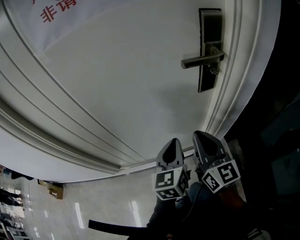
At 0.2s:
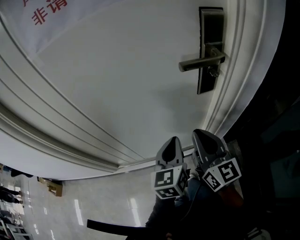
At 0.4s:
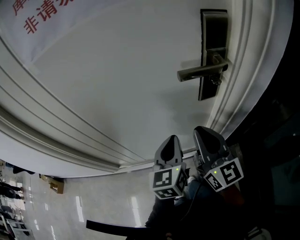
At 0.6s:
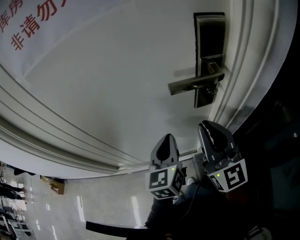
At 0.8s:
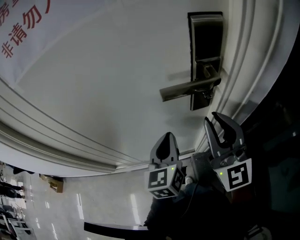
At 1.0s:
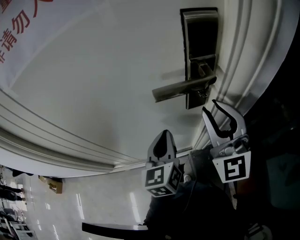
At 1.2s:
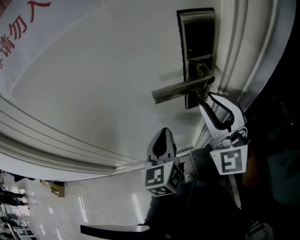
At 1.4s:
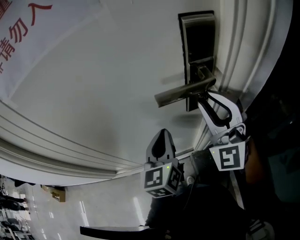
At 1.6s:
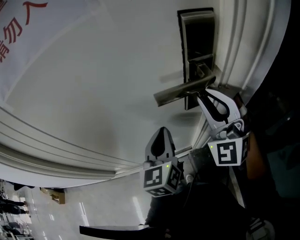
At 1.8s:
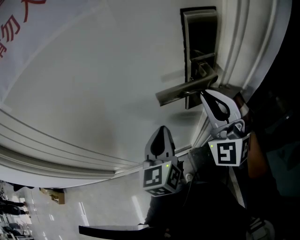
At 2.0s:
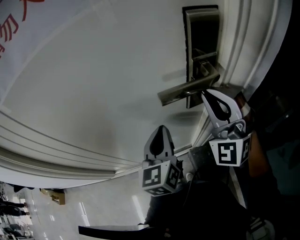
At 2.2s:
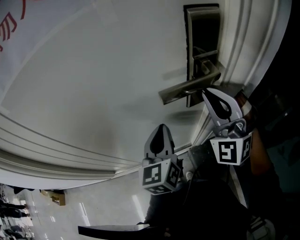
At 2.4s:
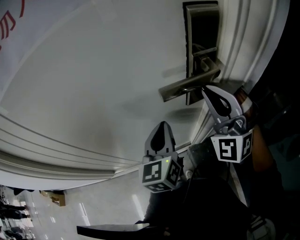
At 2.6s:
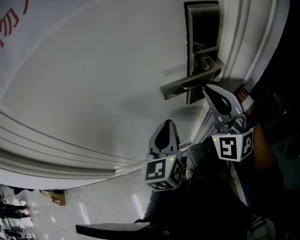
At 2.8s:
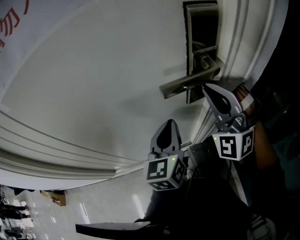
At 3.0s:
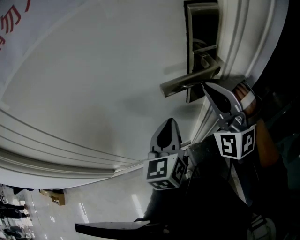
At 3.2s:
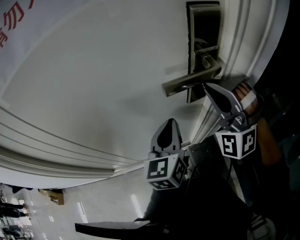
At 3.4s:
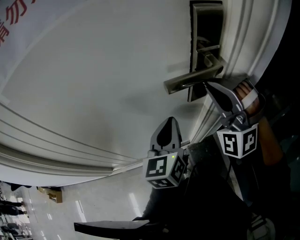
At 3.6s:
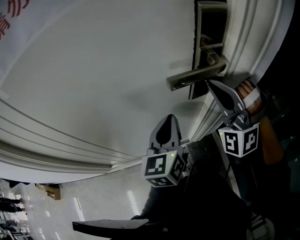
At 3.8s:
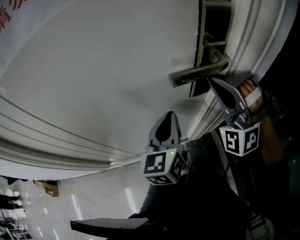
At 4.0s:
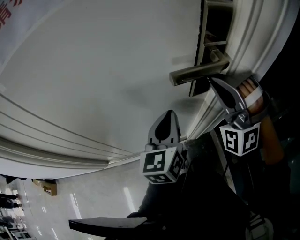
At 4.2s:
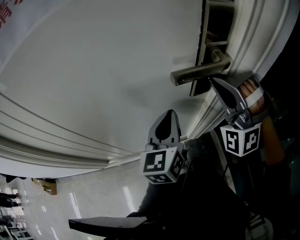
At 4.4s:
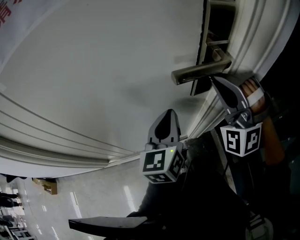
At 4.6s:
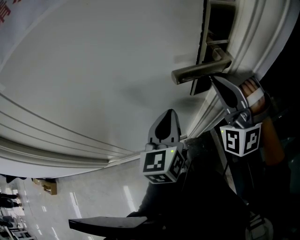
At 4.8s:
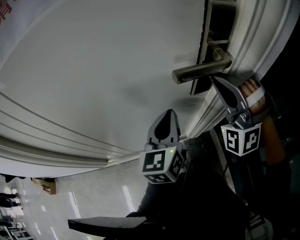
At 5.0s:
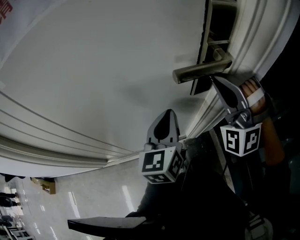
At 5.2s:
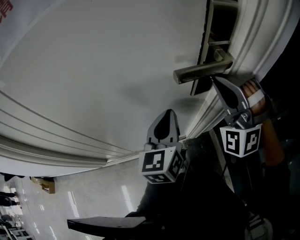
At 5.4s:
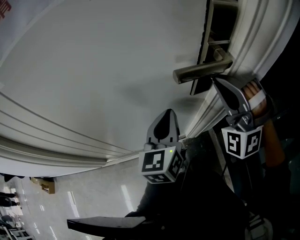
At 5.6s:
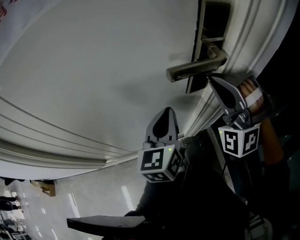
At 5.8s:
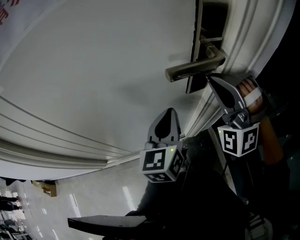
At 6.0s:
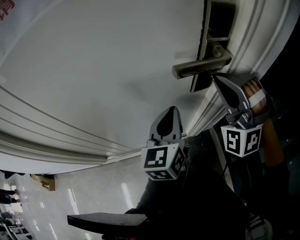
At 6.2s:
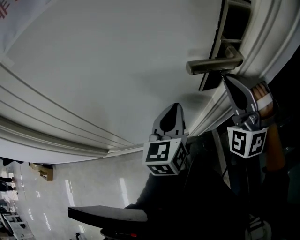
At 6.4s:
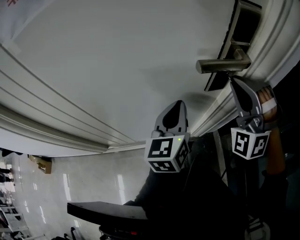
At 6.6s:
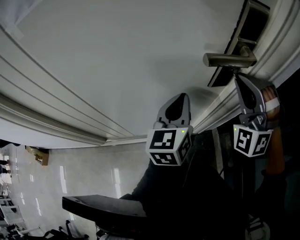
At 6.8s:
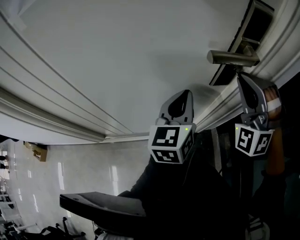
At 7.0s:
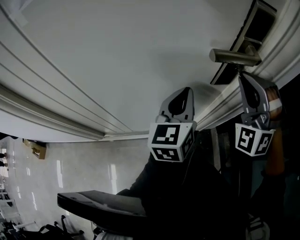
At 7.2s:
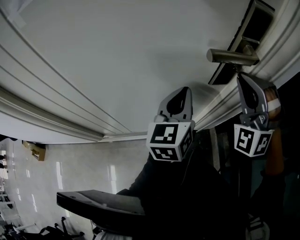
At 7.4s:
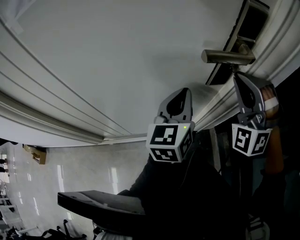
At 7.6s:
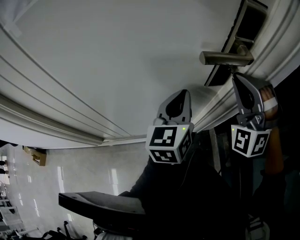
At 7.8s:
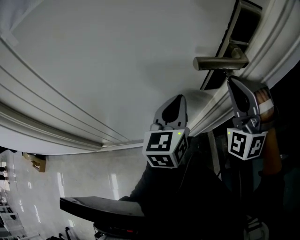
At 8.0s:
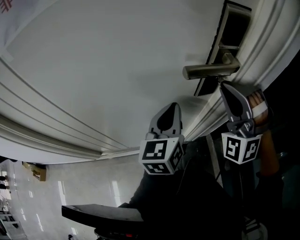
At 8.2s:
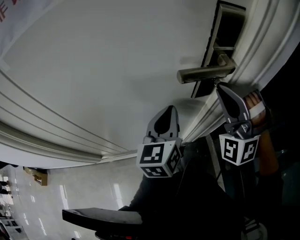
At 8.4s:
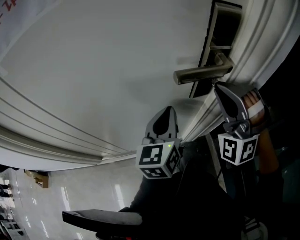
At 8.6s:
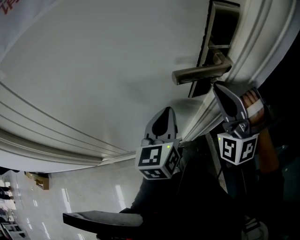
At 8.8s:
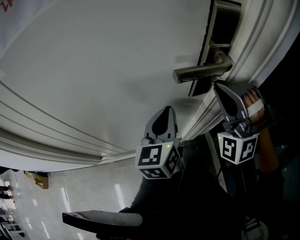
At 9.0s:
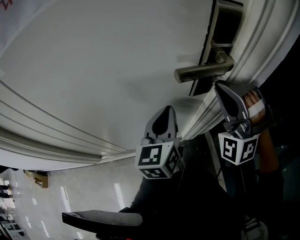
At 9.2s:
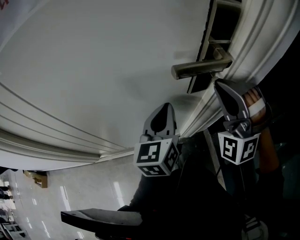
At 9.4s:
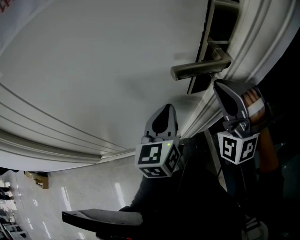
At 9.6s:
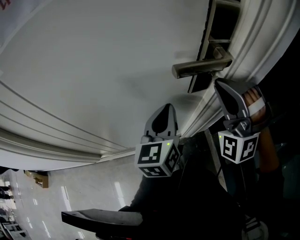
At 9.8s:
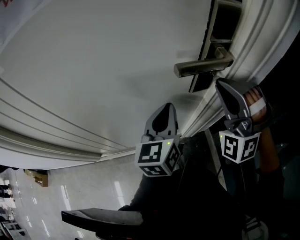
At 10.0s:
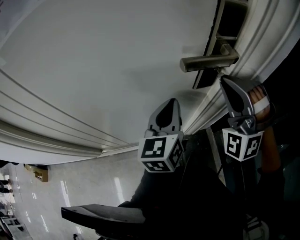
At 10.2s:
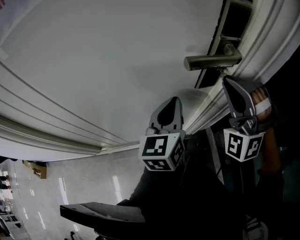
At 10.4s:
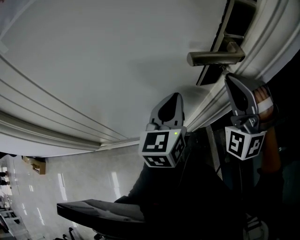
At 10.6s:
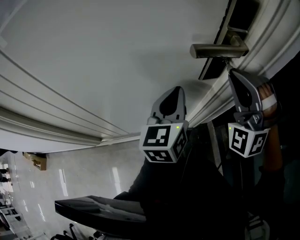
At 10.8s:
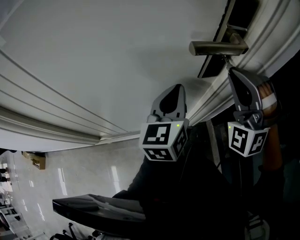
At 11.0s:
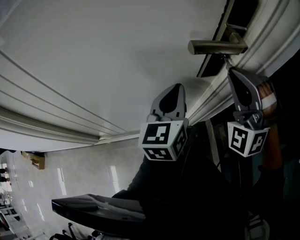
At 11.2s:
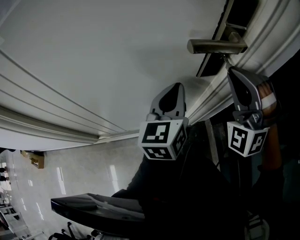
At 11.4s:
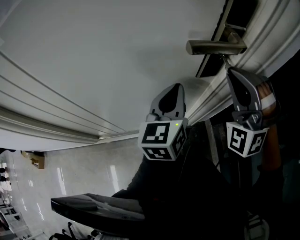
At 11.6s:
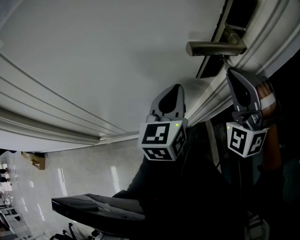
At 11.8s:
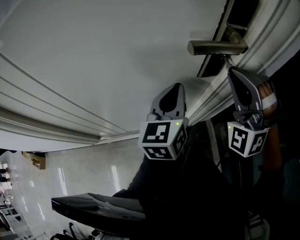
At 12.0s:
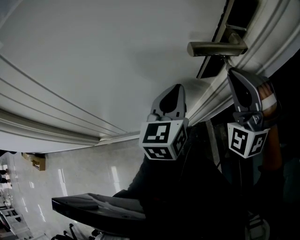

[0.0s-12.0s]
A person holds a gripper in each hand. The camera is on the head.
0.0s to 1.6s: The right gripper moves forward, to the right and upward, roughly 20 cm, and twists about 70 degrees counterclockwise, seen from behind; the left gripper shifts roughly 10 cm forward and to the right.
1.6s to 3.0s: The right gripper swivels about 20 degrees.
3.0s to 4.4s: There are only small adjustments of the grippers.
4.4s to 6.0s: Both grippers stay about where they are.
6.0s to 7.6s: The grippers stay close to where they were, moving slightly.
7.6s to 12.0s: Both grippers stay put.

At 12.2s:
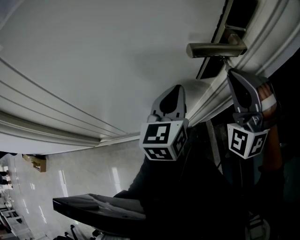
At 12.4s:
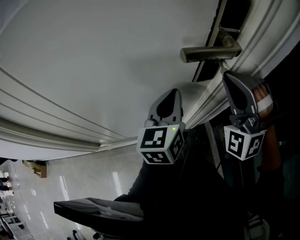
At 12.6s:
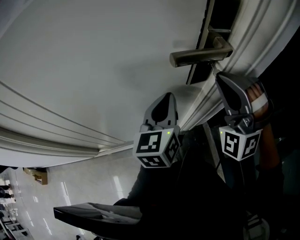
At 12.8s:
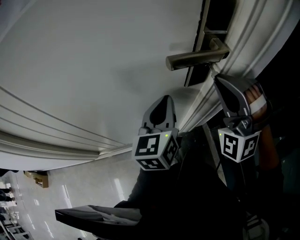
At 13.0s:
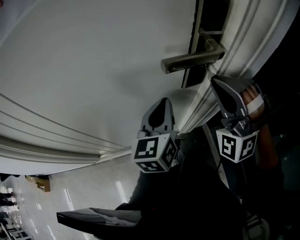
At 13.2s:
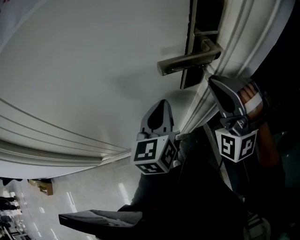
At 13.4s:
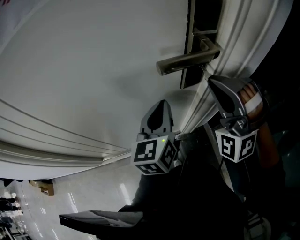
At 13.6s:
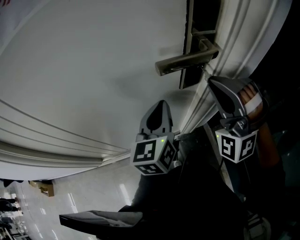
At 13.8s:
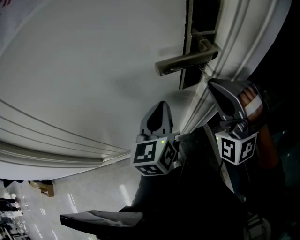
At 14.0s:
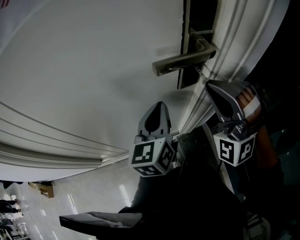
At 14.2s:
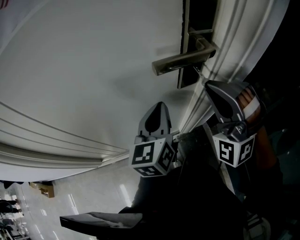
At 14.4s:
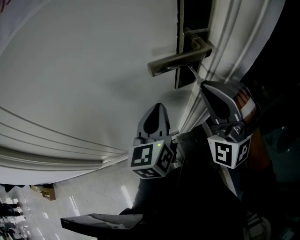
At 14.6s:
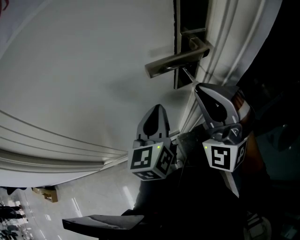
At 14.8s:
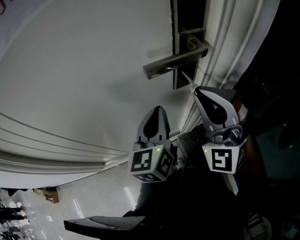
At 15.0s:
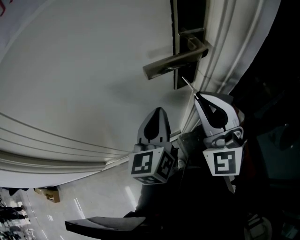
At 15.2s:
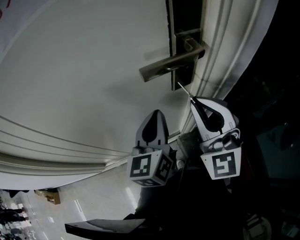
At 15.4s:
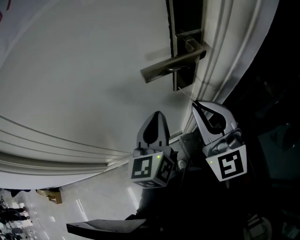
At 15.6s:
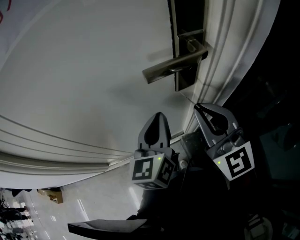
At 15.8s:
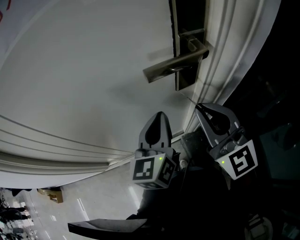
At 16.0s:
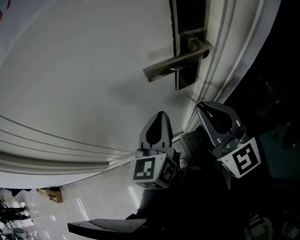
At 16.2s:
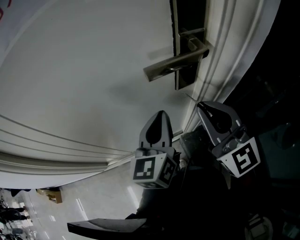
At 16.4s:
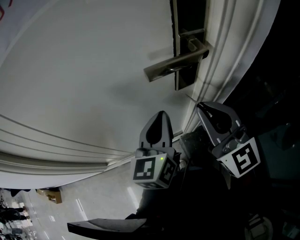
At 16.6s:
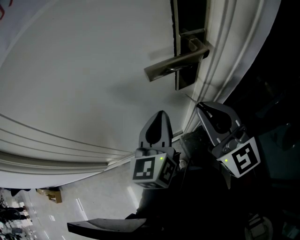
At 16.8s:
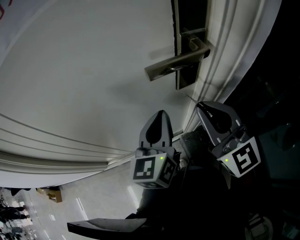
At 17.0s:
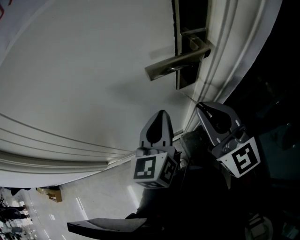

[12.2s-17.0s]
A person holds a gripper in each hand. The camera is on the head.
12.2s to 13.8s: Neither gripper changes place.
13.8s to 15.4s: The right gripper rotates around the line of its fingers by approximately 60 degrees, clockwise from behind.
15.4s to 17.0s: The grippers move only a little.

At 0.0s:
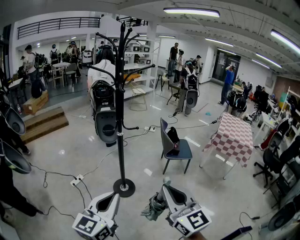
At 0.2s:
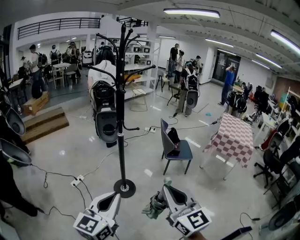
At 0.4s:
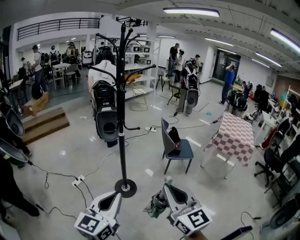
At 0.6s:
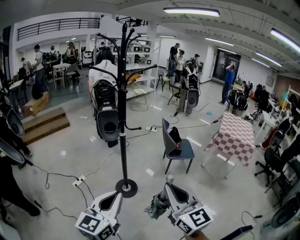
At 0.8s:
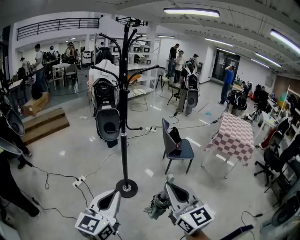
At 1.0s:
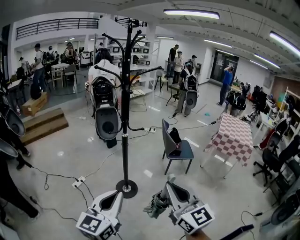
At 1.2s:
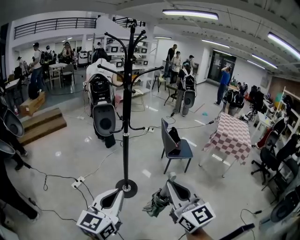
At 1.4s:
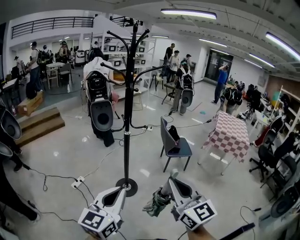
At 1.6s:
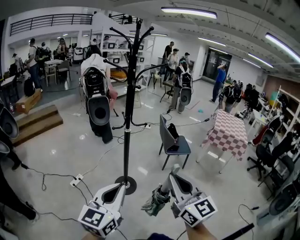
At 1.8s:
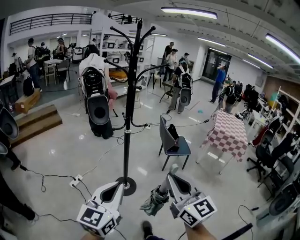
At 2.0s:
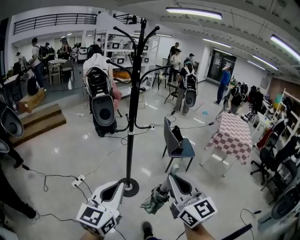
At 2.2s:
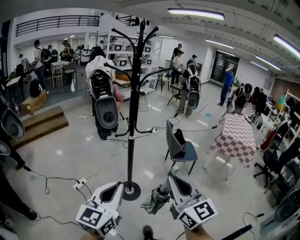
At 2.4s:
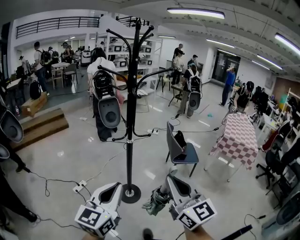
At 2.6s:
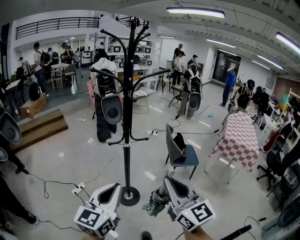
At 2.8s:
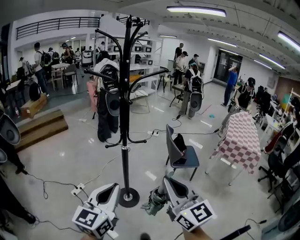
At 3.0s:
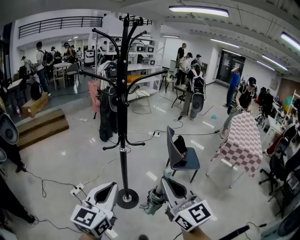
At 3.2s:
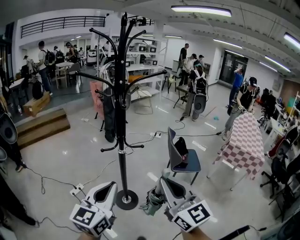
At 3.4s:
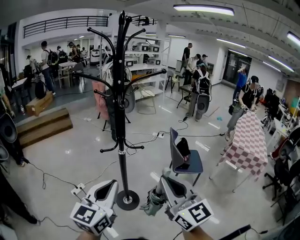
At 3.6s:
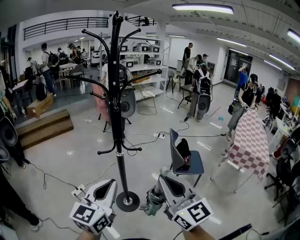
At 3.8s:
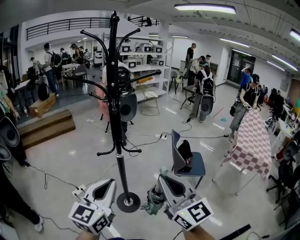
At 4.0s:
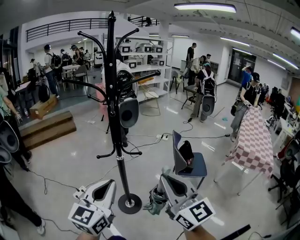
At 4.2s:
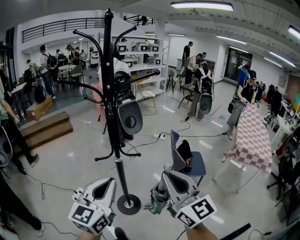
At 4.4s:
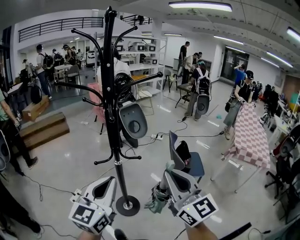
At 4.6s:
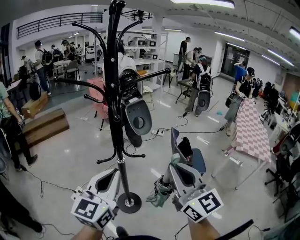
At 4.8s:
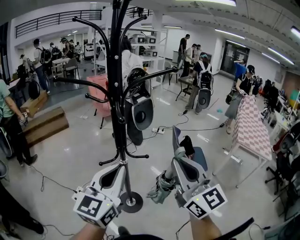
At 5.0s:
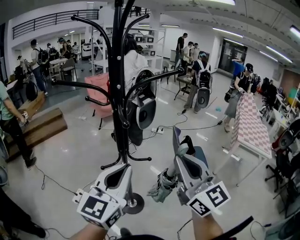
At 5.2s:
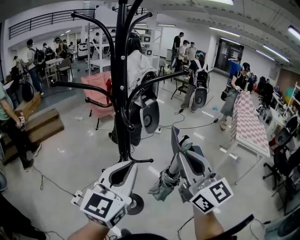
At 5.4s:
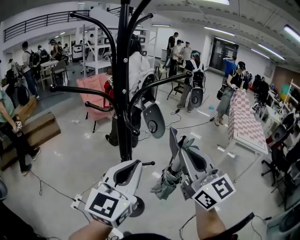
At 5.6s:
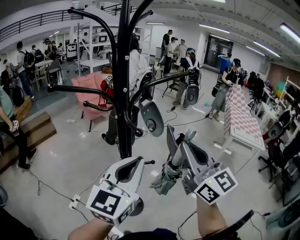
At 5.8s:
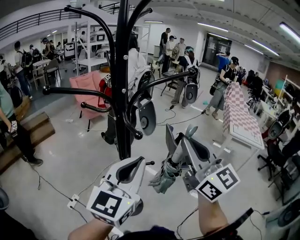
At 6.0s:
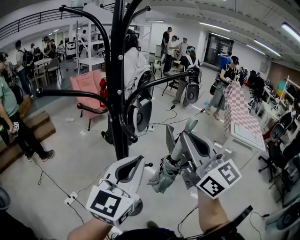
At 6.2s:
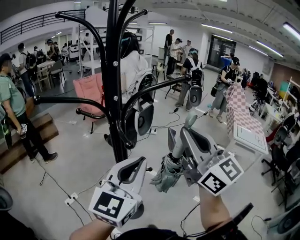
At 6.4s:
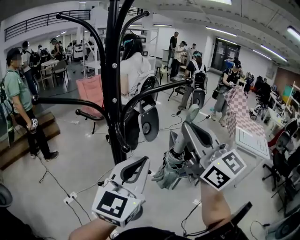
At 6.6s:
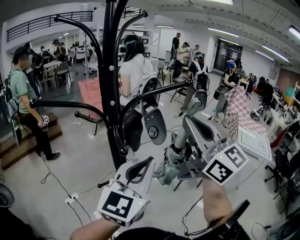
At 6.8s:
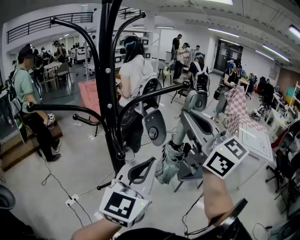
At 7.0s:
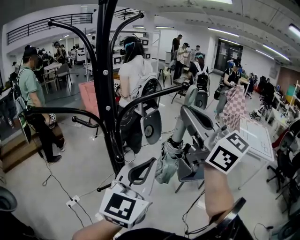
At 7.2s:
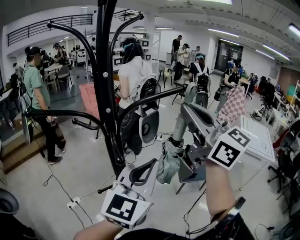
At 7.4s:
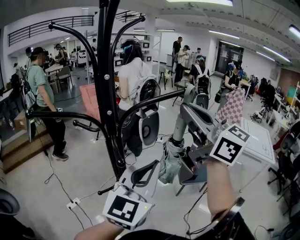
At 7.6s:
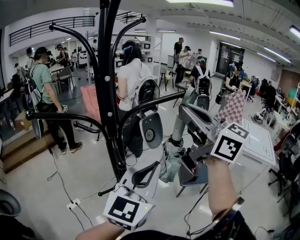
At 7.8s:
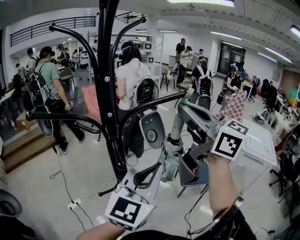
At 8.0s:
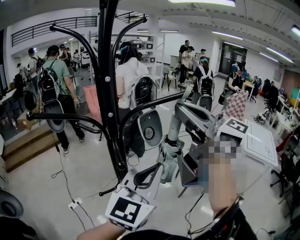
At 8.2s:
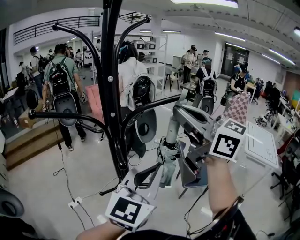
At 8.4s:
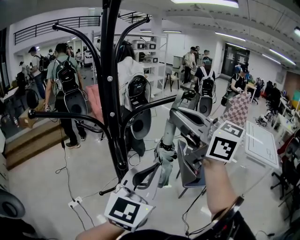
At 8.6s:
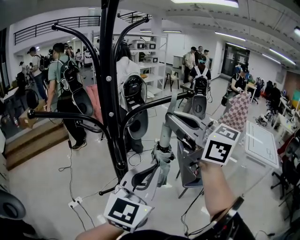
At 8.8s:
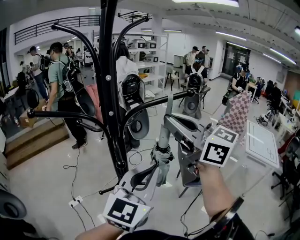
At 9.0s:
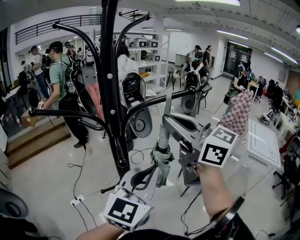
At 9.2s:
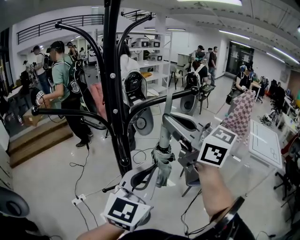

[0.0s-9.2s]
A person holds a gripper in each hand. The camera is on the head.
0.0s to 1.6s: Both grippers move to the left, approximately 10 cm.
1.6s to 3.0s: The grippers both shift forward by approximately 20 cm.
3.0s to 4.6s: Both grippers travel together forward, some 10 cm.
4.6s to 6.2s: Both grippers travel together forward and upward, approximately 15 cm.
6.2s to 7.6s: The right gripper travels forward and upward by some 10 cm. The left gripper ends up roughly 5 cm from where it was.
7.6s to 9.2s: The right gripper heads to the left, covering approximately 5 cm.
